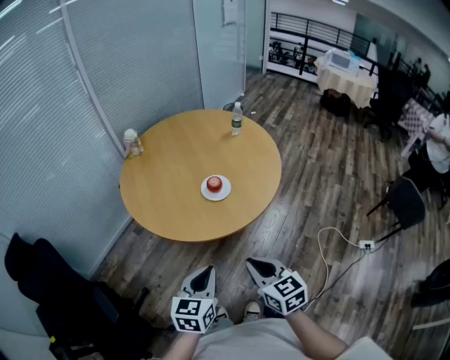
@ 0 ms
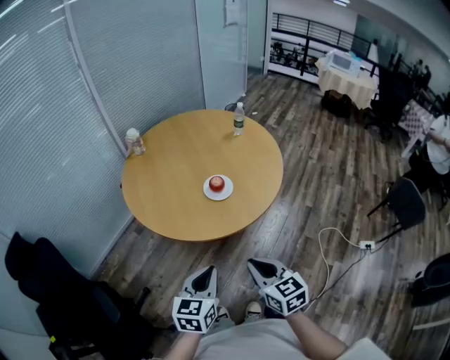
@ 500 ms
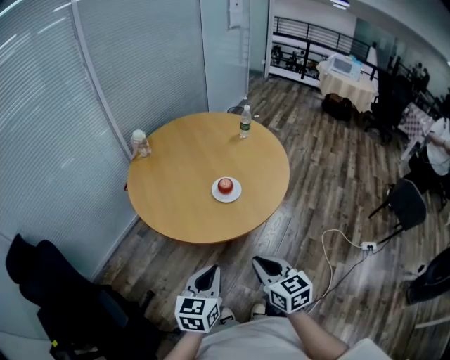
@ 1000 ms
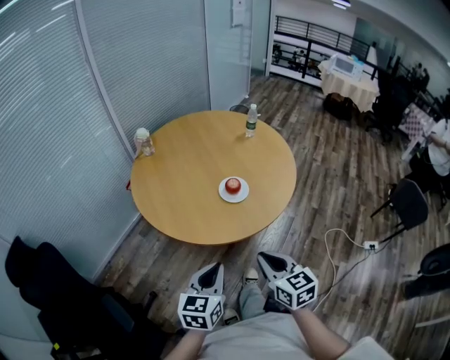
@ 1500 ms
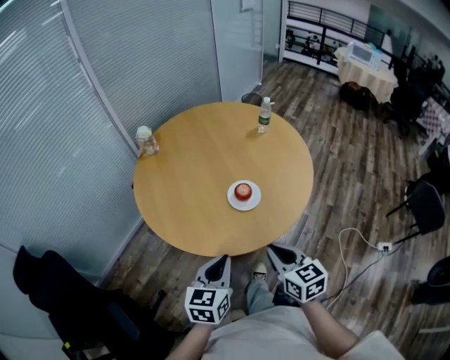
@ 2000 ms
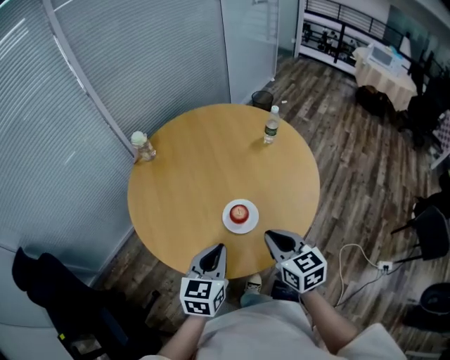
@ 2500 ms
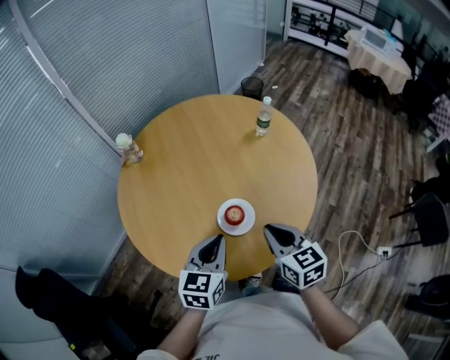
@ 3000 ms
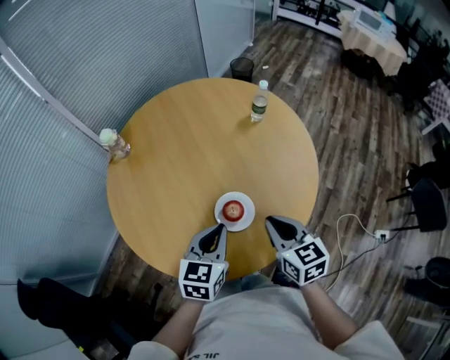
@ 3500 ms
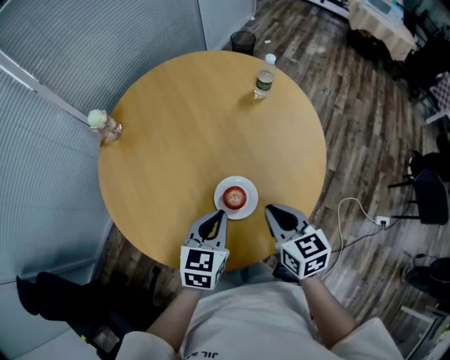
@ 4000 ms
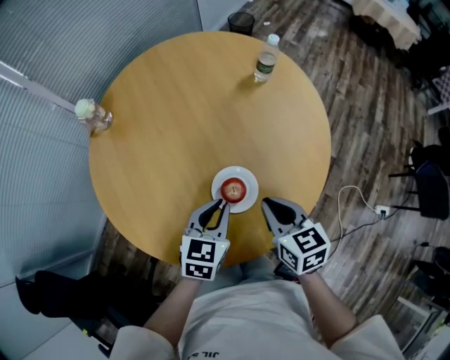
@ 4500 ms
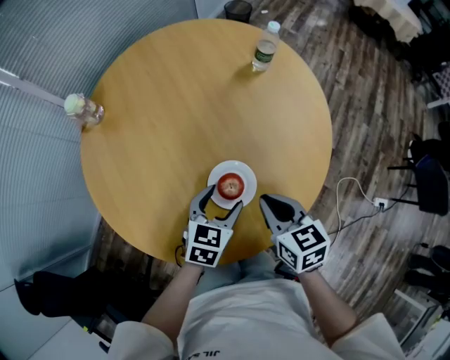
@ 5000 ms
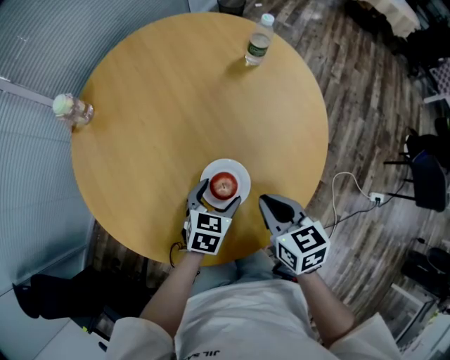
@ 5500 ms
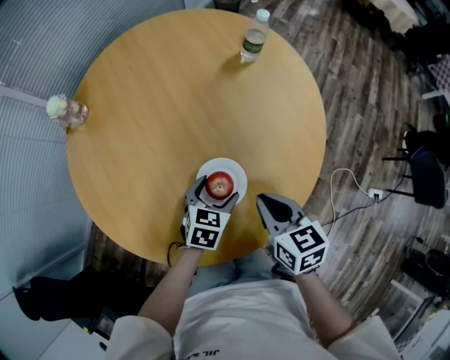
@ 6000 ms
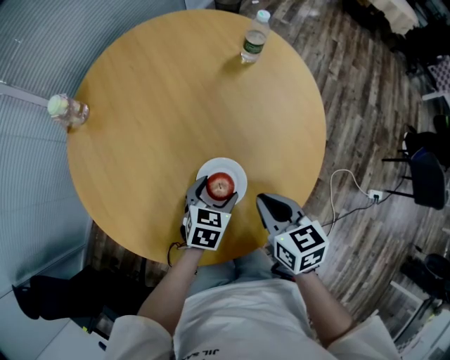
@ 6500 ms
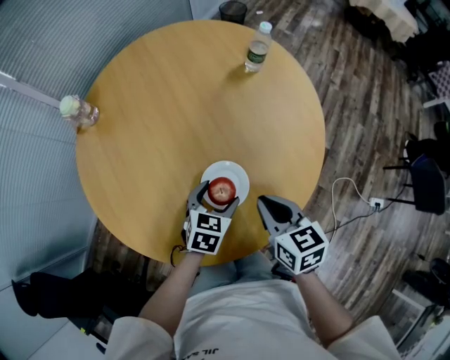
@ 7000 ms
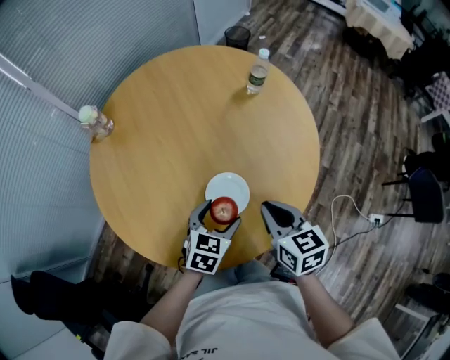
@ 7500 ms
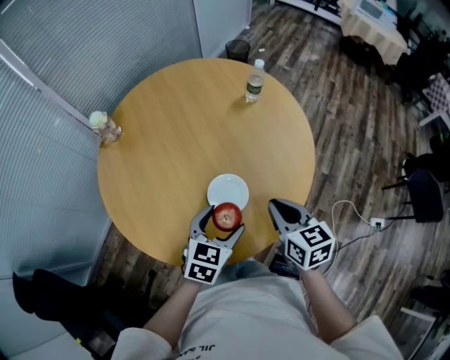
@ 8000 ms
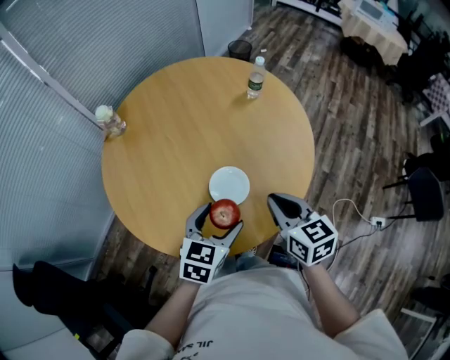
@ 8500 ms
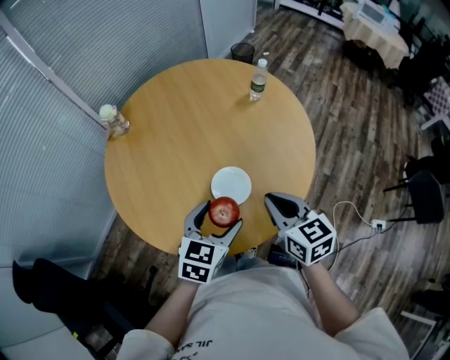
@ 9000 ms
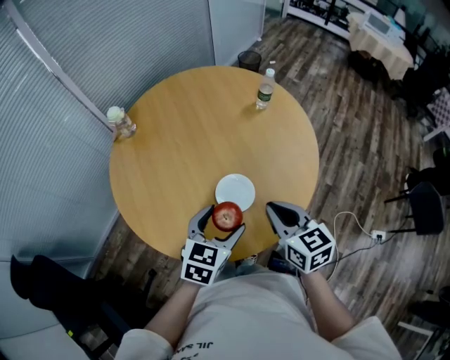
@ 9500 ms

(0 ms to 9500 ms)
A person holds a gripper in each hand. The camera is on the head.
0 ms - 2000 ms: Both grippers travel together forward, some 15 cm.
2000 ms - 4000 ms: Both grippers travel together forward, about 25 cm.
4000 ms - 5500 ms: The right gripper travels downward by approximately 5 cm; the left gripper goes approximately 15 cm downward, and opens.
5500 ms - 7500 ms: The right gripper ends up some 5 cm from where it was, while the left gripper moves upward, some 5 cm.
7500 ms - 9500 ms: The left gripper travels upward and backward by about 10 cm, while the right gripper goes about 5 cm upward.

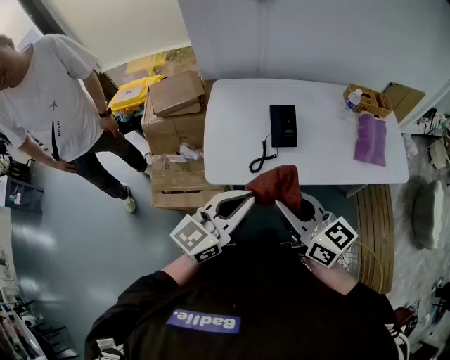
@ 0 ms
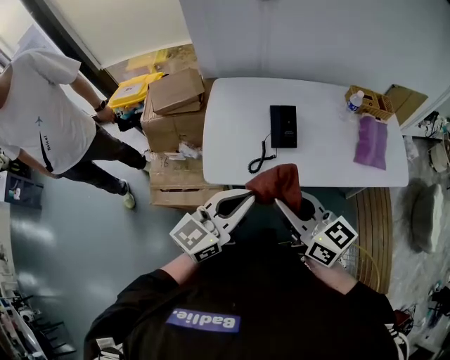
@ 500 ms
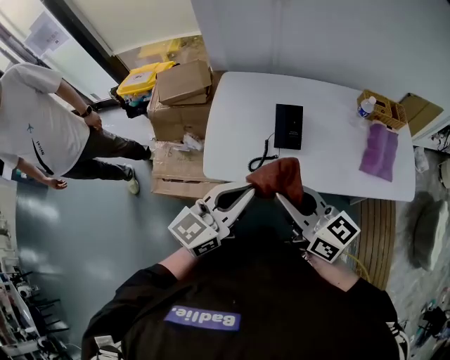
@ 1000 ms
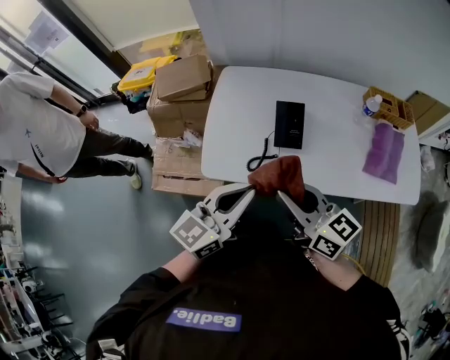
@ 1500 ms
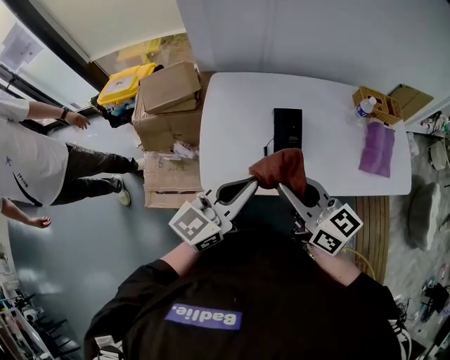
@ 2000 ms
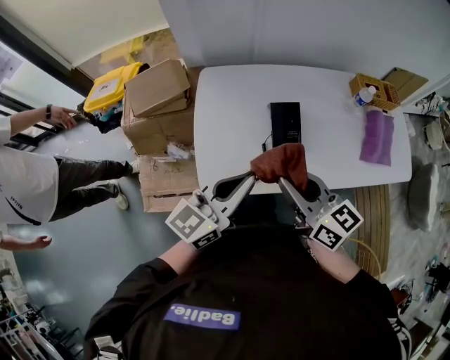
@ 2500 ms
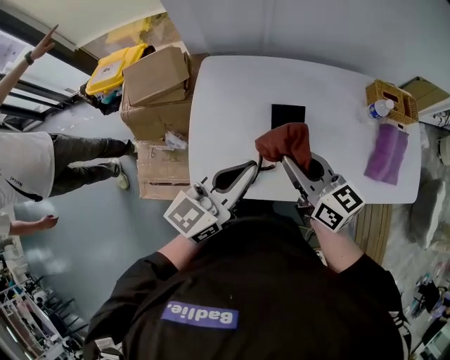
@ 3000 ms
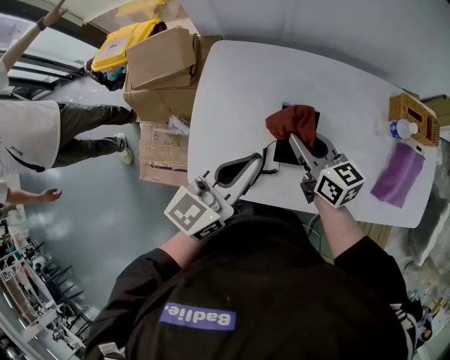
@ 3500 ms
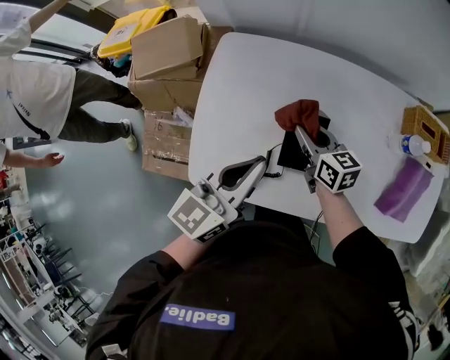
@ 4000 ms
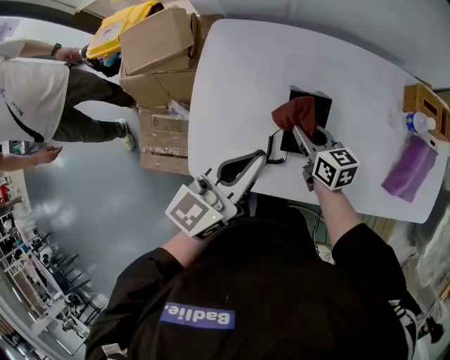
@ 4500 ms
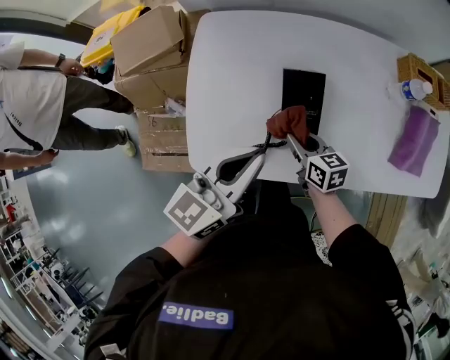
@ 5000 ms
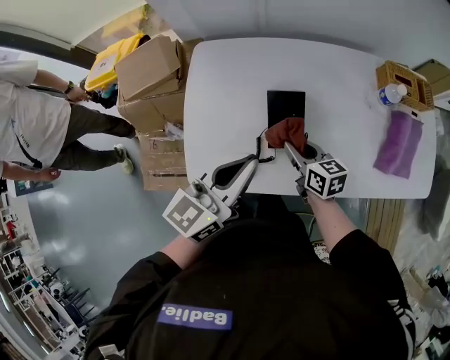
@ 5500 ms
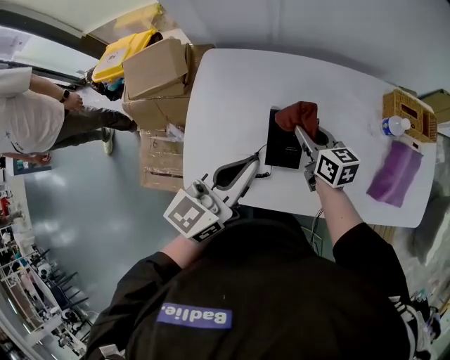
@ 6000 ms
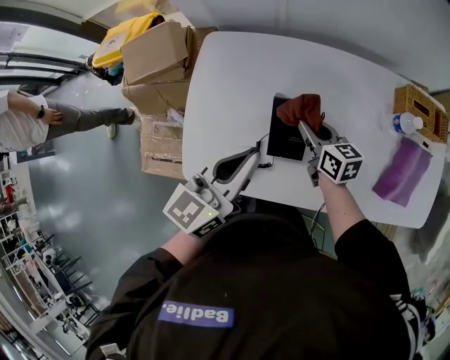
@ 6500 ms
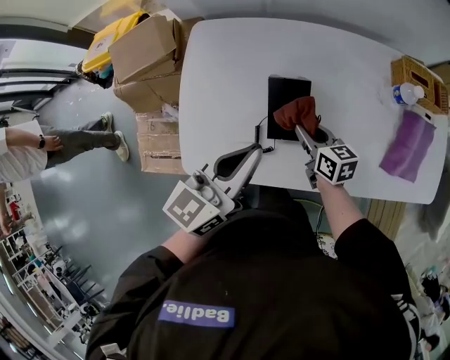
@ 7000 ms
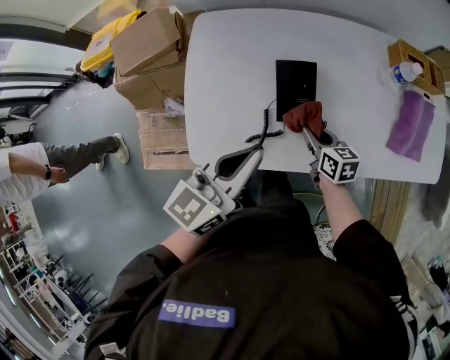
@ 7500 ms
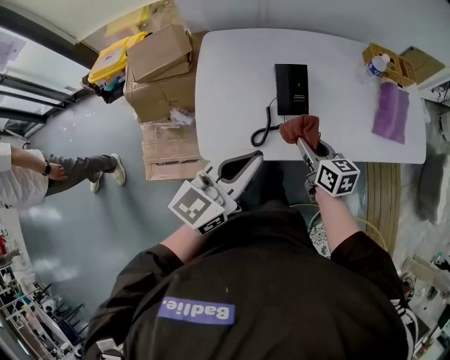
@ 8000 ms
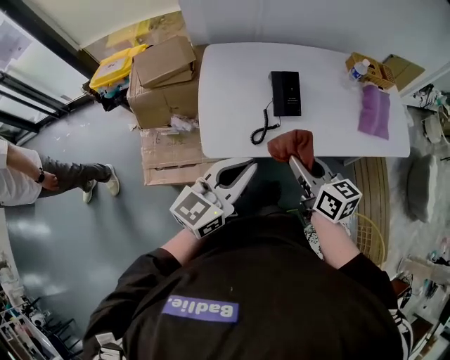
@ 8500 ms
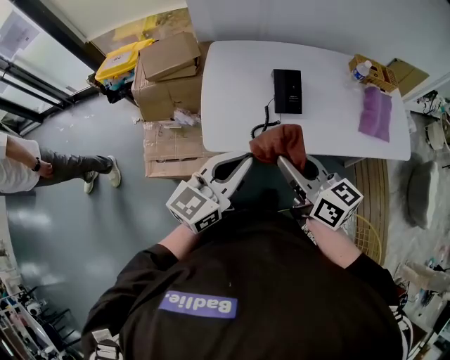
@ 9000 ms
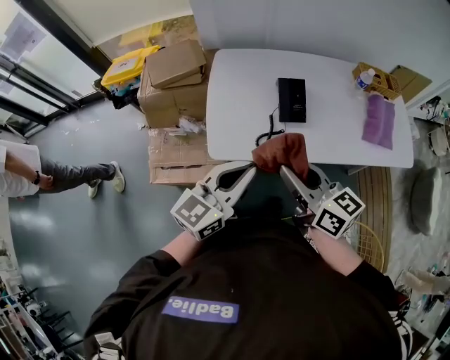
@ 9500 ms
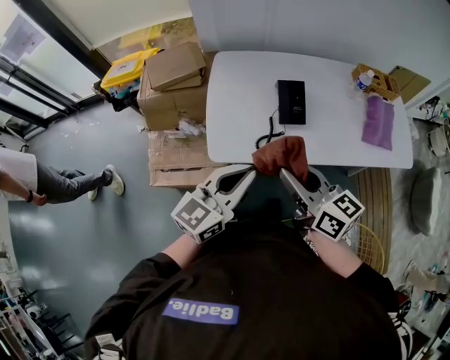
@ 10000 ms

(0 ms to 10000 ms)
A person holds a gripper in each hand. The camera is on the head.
0 ms - 2000 ms: Both grippers move forward, approximately 10 cm.
2000 ms - 4000 ms: The left gripper is displaced forward and downward by roughly 20 cm; the right gripper shifts some 35 cm forward and downward, and changes its angle by roughly 20 degrees.
4000 ms - 6000 ms: The right gripper is displaced to the right by approximately 5 cm, and reaches approximately 15 cm backward, then returns.
6000 ms - 8000 ms: Both grippers move backward, about 20 cm.
8000 ms - 10000 ms: The left gripper heads backward, covering roughly 10 cm. The right gripper moves upward, backward and to the left, some 25 cm, and rotates some 20 degrees.

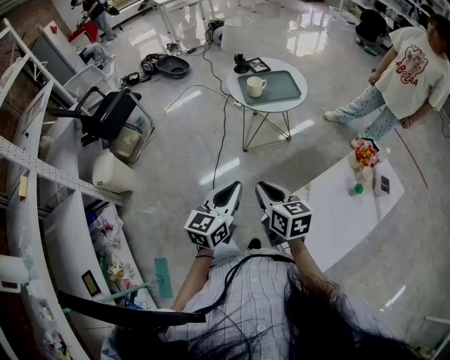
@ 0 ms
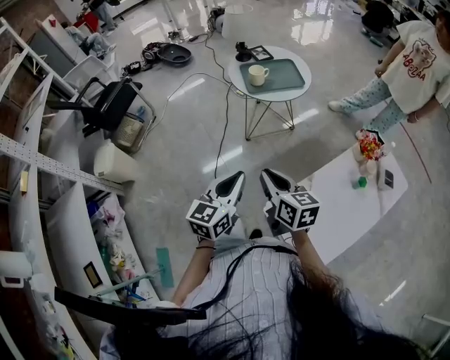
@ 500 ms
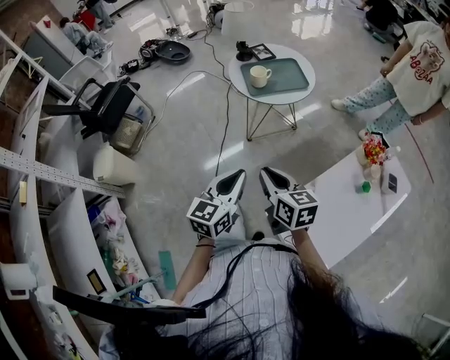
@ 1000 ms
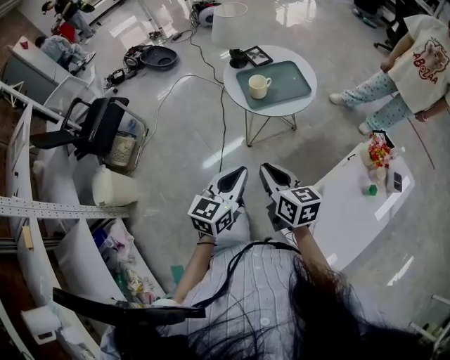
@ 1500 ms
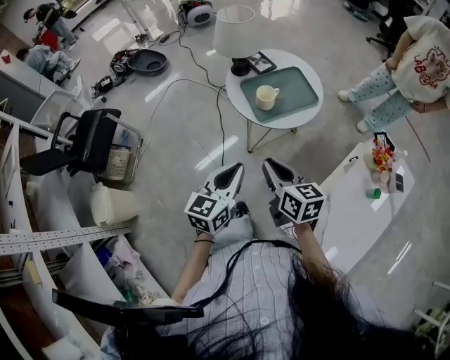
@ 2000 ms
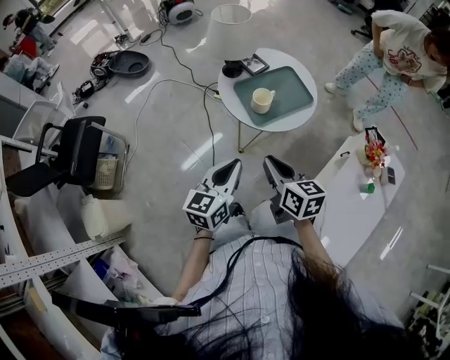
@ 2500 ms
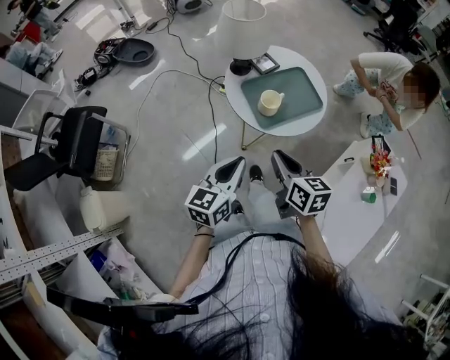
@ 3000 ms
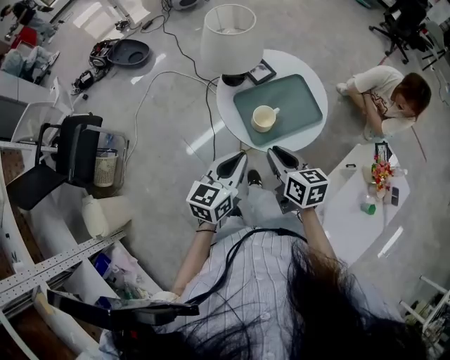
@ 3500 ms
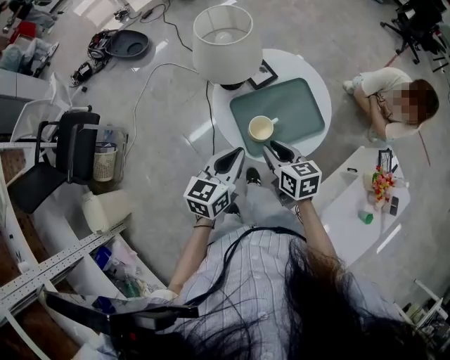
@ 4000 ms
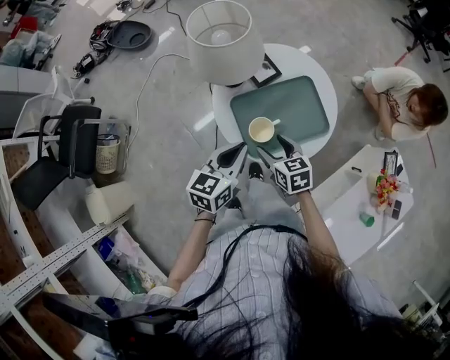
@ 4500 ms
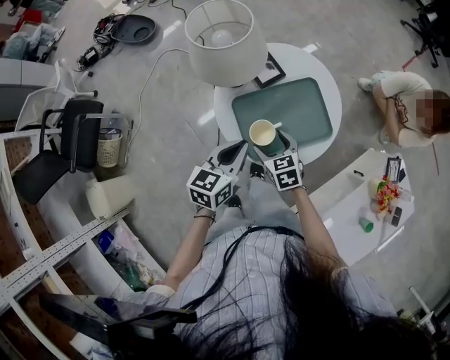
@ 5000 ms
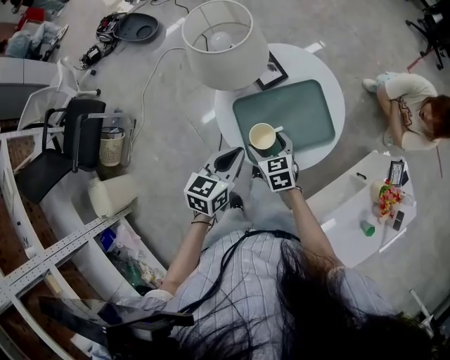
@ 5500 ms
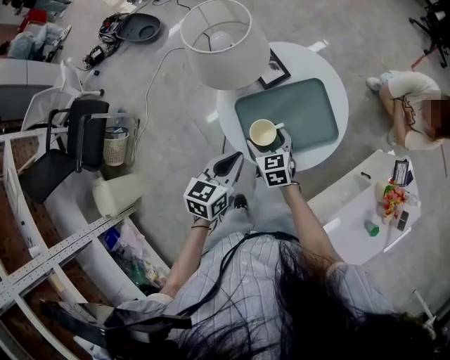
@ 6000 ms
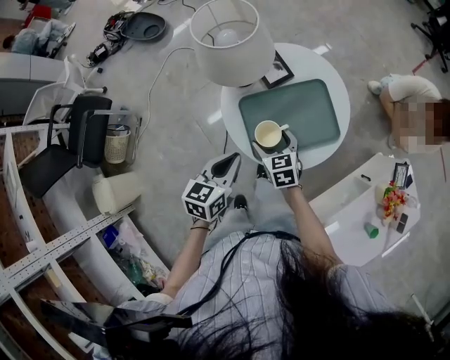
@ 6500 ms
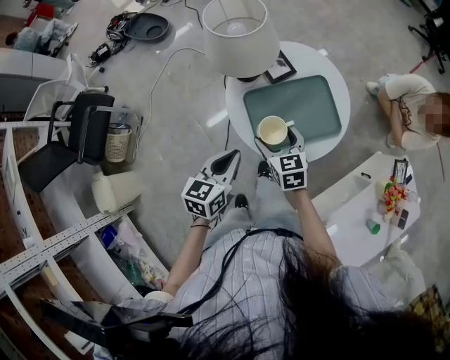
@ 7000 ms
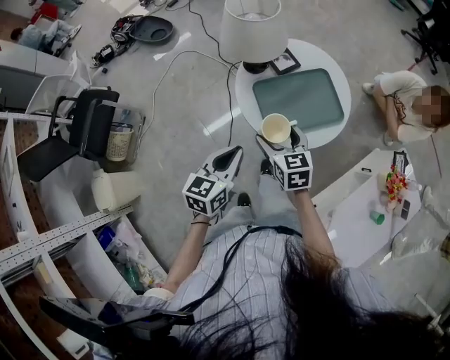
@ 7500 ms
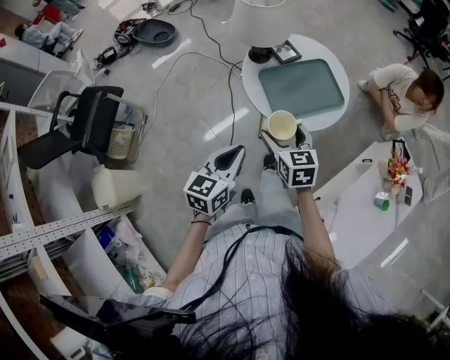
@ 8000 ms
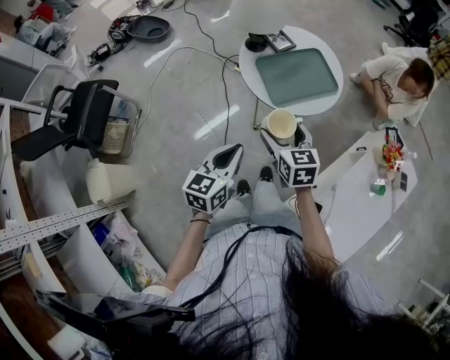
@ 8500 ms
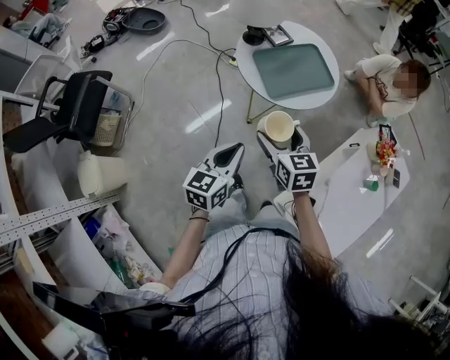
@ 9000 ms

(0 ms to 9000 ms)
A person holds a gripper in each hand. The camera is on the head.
0 ms - 2000 ms: Both grippers move forward, some 30 cm.
2000 ms - 4500 ms: The left gripper moves forward, about 30 cm. The right gripper heads forward and downward, covering some 35 cm, swivels approximately 30 degrees, and opens its fingers.
4500 ms - 7000 ms: The left gripper moves about 5 cm.
7000 ms - 9000 ms: The right gripper goes approximately 25 cm backward and upward. The left gripper shifts some 20 cm backward.
